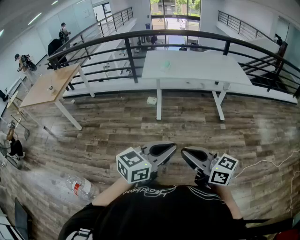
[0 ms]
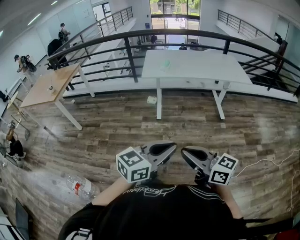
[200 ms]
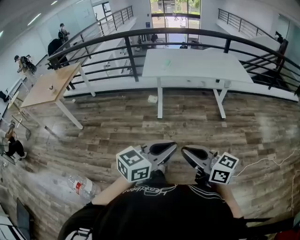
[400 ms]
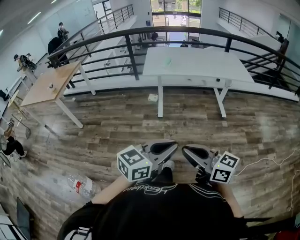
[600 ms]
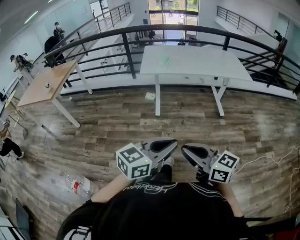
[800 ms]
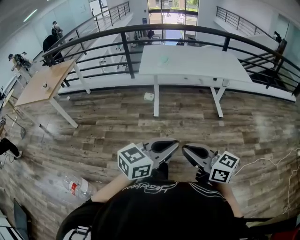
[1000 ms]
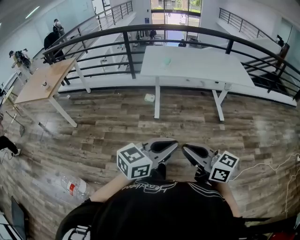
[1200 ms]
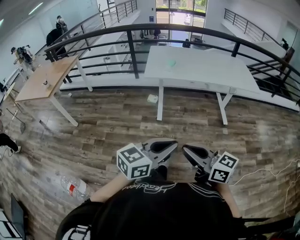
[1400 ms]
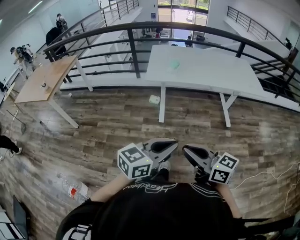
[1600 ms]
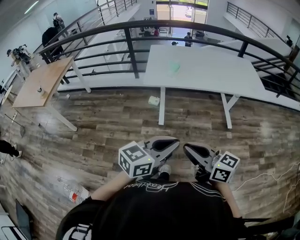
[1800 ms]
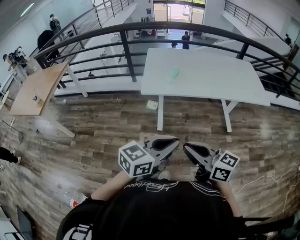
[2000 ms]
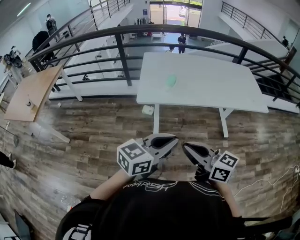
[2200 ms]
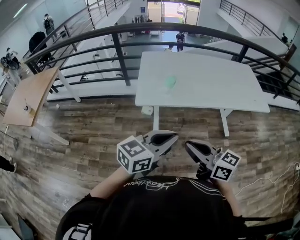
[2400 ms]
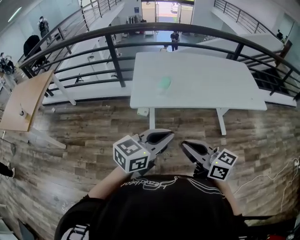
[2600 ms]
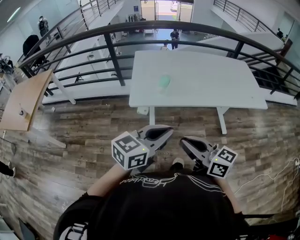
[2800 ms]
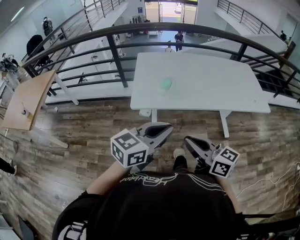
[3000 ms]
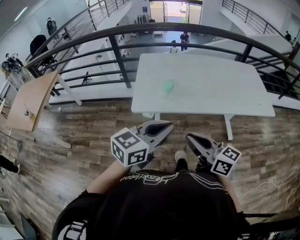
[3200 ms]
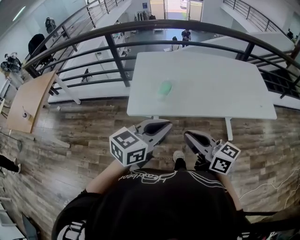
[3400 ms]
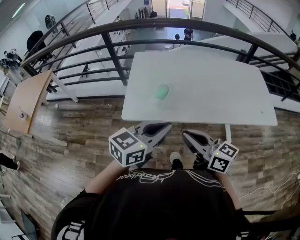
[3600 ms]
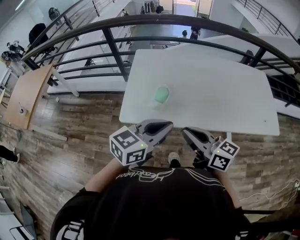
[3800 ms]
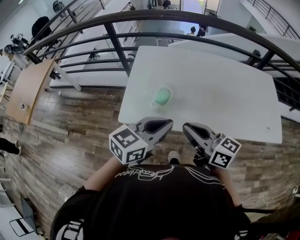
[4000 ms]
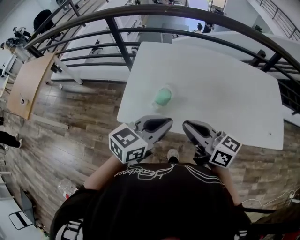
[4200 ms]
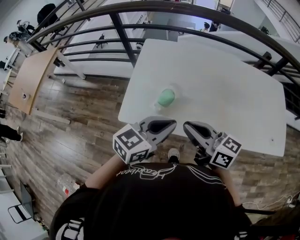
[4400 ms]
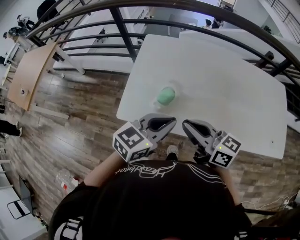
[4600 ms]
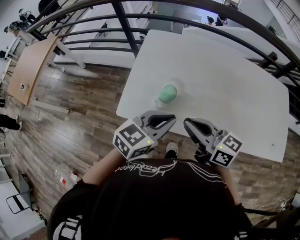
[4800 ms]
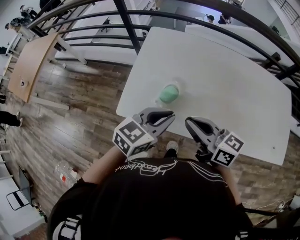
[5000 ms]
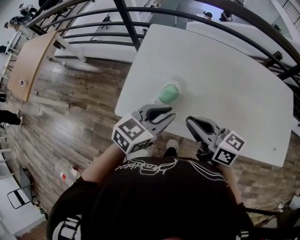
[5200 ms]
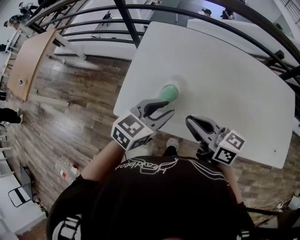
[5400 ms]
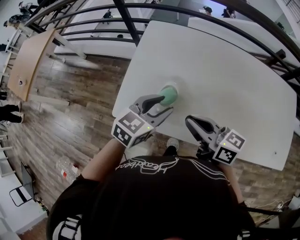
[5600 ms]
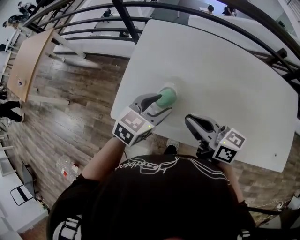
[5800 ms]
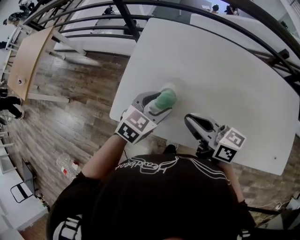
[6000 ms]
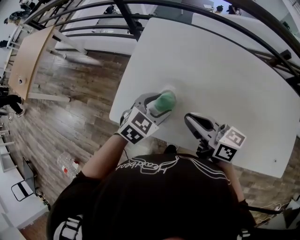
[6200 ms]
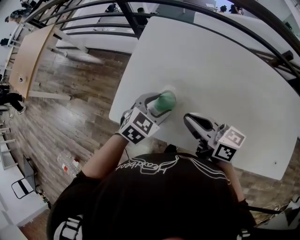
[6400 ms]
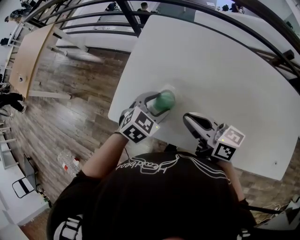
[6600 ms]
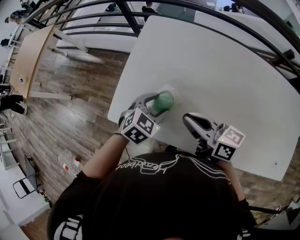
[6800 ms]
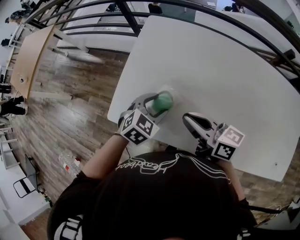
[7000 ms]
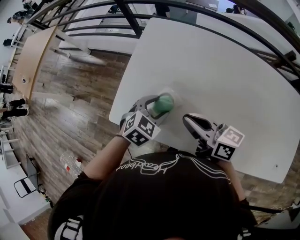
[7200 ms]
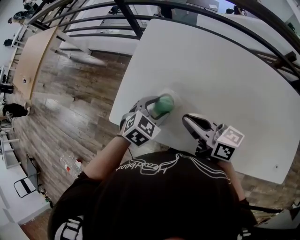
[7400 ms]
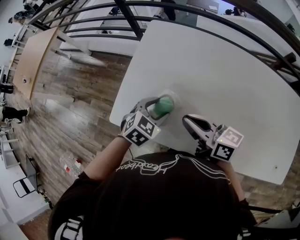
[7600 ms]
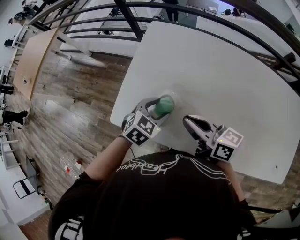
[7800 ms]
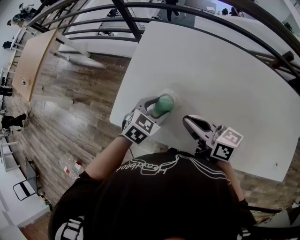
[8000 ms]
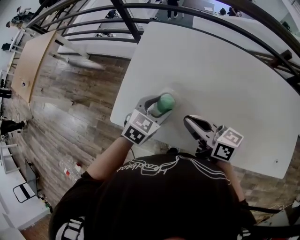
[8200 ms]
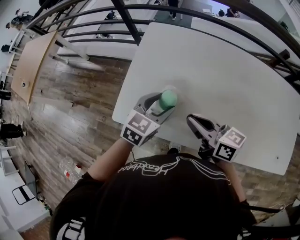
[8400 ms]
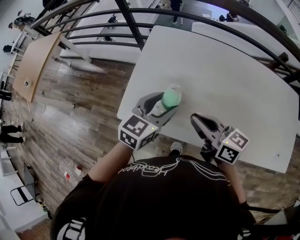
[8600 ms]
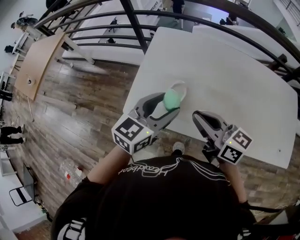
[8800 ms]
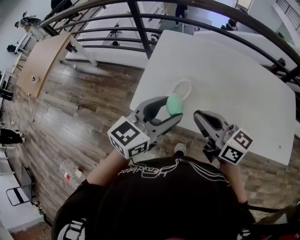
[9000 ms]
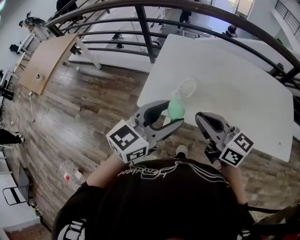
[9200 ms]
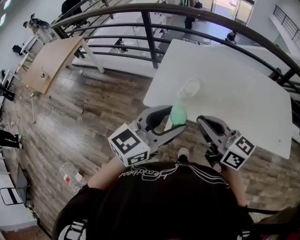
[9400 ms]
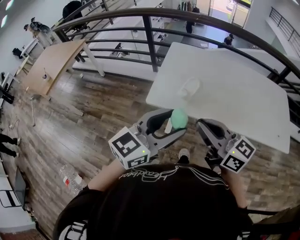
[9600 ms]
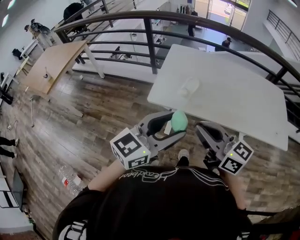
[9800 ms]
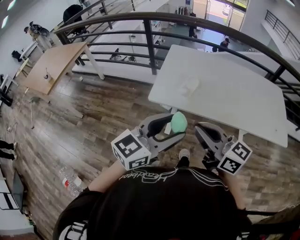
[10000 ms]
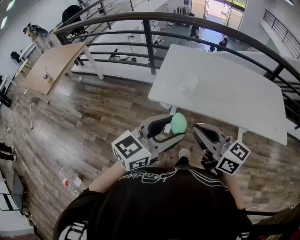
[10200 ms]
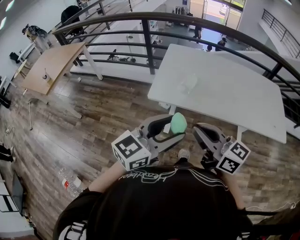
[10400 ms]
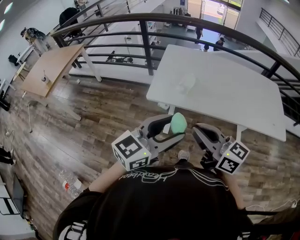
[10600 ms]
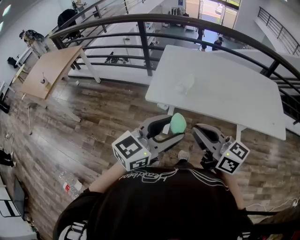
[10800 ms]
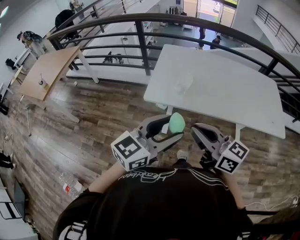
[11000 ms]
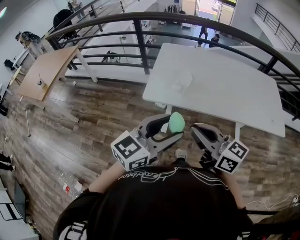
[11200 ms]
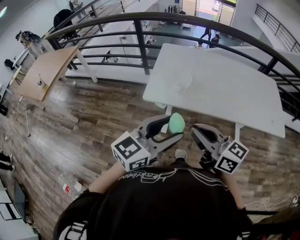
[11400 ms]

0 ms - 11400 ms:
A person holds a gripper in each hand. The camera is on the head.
0 ms - 1400 ms: Both grippers travel together forward, approximately 15 cm.
1400 ms - 2800 ms: Both grippers travel together forward, about 40 cm.
2800 ms - 4200 ms: The two grippers go approximately 30 cm forward.
4200 ms - 5600 ms: The grippers both shift forward and downward by some 15 cm. The left gripper opens.
5600 ms - 7200 ms: The right gripper shifts by roughly 5 cm. Meanwhile the left gripper moves downward, some 10 cm, and changes its angle by some 30 degrees.
7200 ms - 8600 ms: The left gripper travels upward by about 10 cm, and swivels some 30 degrees.
8600 ms - 10000 ms: The right gripper is displaced backward, to the left and upward by some 40 cm. Meanwhile the left gripper shifts roughly 40 cm backward and upward, and turns by some 30 degrees.
10000 ms - 11400 ms: The grippers stay close to where they were, moving slightly.

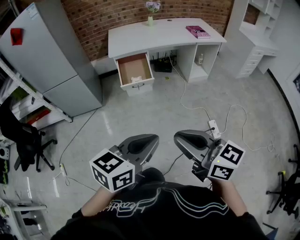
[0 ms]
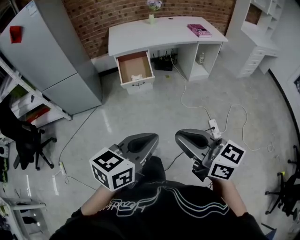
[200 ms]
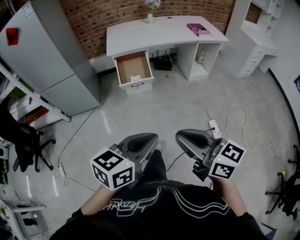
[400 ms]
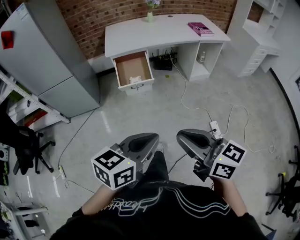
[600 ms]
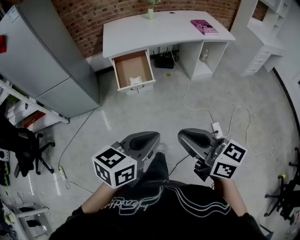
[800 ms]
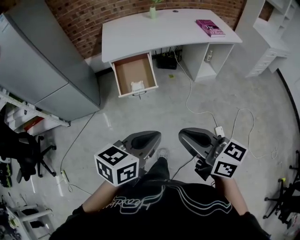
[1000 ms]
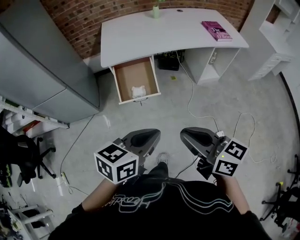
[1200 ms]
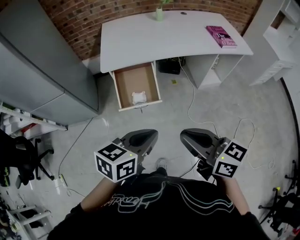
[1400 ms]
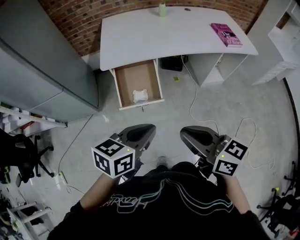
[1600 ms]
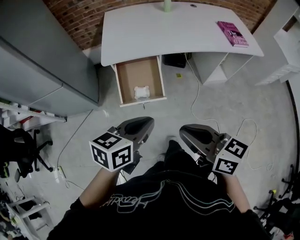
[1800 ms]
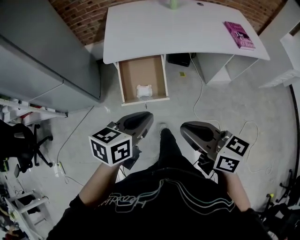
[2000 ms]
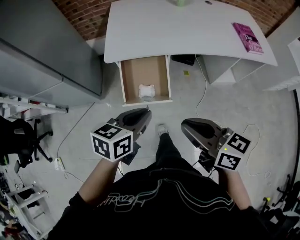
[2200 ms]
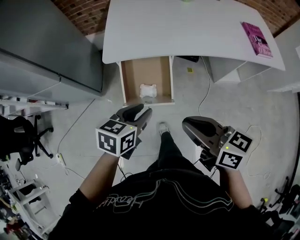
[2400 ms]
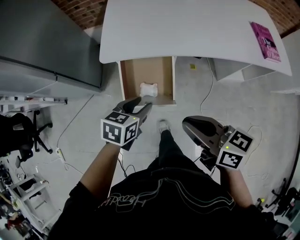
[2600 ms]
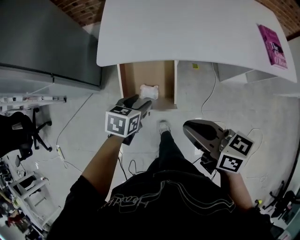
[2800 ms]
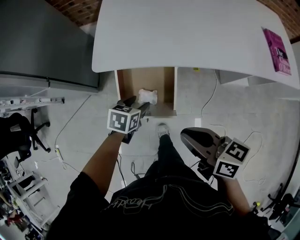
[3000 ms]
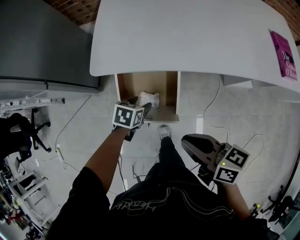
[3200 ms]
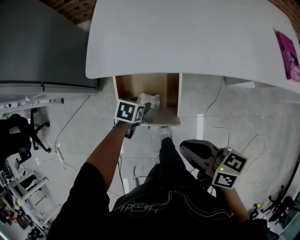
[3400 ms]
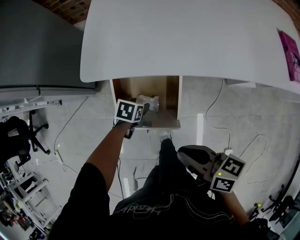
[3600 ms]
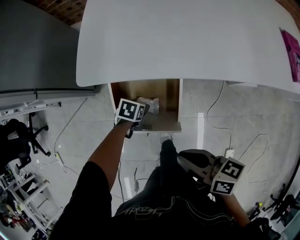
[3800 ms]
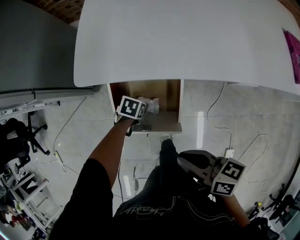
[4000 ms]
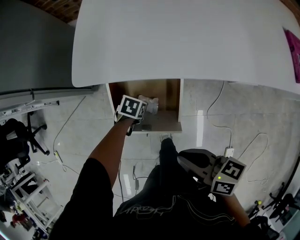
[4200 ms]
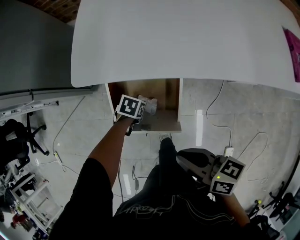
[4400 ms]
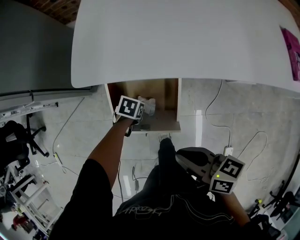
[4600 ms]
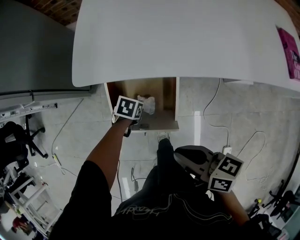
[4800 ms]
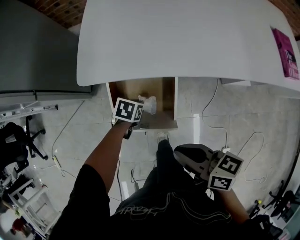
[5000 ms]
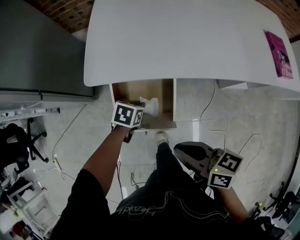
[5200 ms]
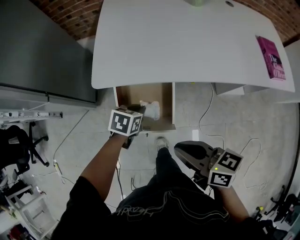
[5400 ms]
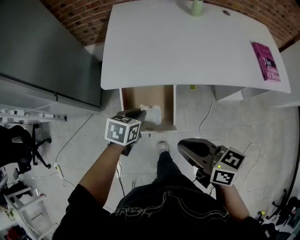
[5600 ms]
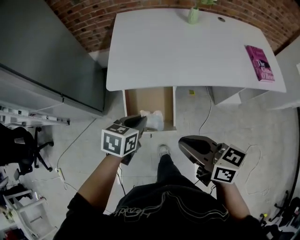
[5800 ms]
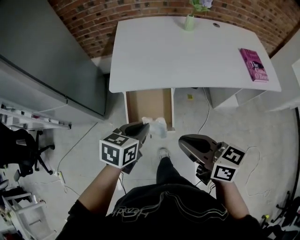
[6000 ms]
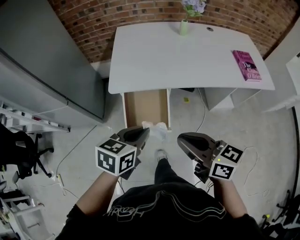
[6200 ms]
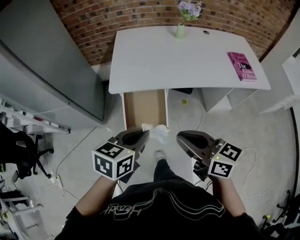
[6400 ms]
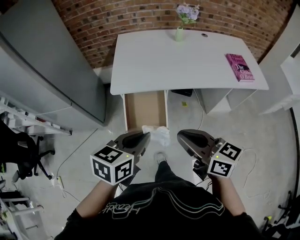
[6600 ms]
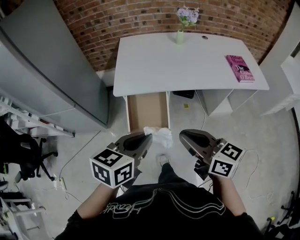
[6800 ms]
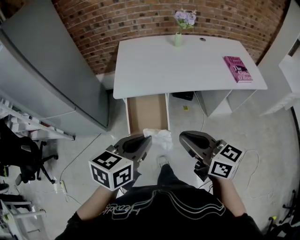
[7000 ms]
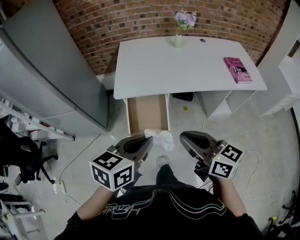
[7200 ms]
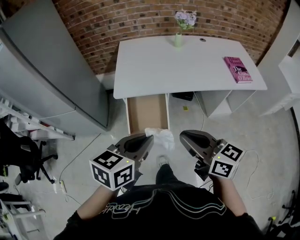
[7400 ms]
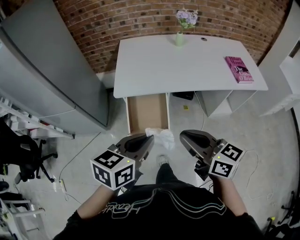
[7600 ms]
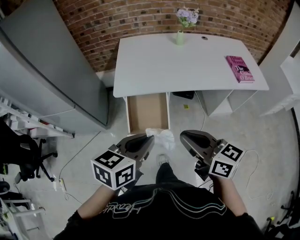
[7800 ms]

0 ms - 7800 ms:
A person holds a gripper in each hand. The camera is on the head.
0 ms - 1600 ms: Both grippers are carried forward, approximately 50 cm.
1600 ms - 3200 ms: The right gripper is displaced forward and downward by approximately 35 cm, and turns by roughly 20 degrees; the left gripper shifts approximately 50 cm downward and forward, angles its fingers downward, by approximately 40 degrees, and opens its fingers.
3200 ms - 4600 ms: The left gripper goes about 15 cm downward, and closes, while the right gripper travels downward by roughly 10 cm.
4600 ms - 6200 ms: The left gripper travels upward by roughly 50 cm, and tips its fingers upward by about 40 degrees. The right gripper heads upward, covering roughly 30 cm, and changes its angle by roughly 30 degrees.
6200 ms - 7800 ms: The left gripper heads upward and backward, covering some 15 cm; the right gripper shifts some 5 cm upward.

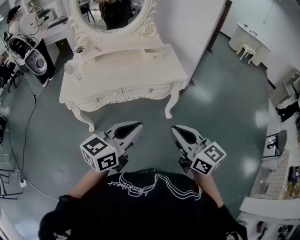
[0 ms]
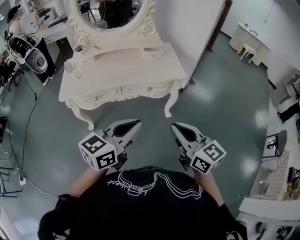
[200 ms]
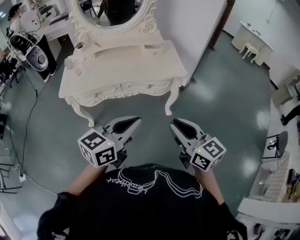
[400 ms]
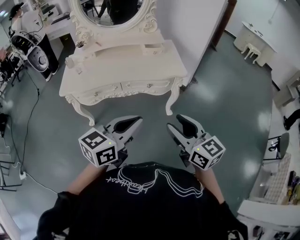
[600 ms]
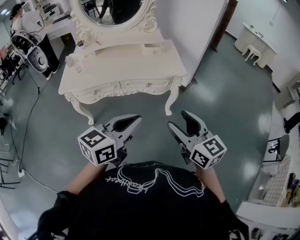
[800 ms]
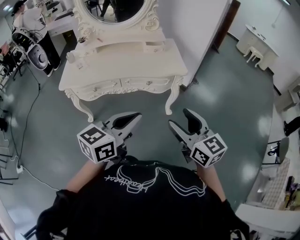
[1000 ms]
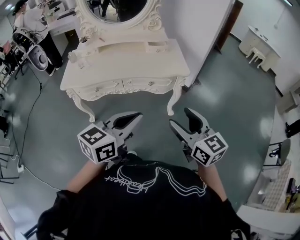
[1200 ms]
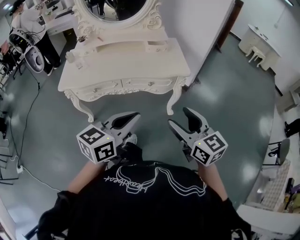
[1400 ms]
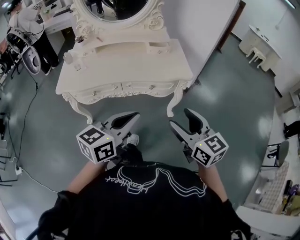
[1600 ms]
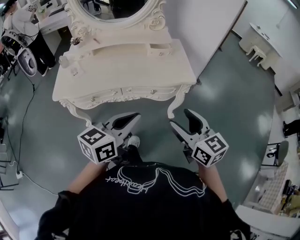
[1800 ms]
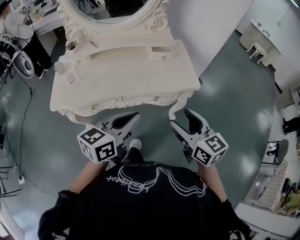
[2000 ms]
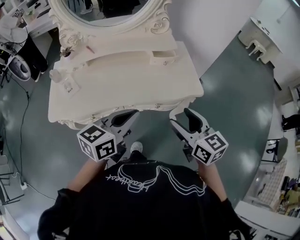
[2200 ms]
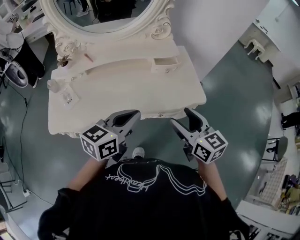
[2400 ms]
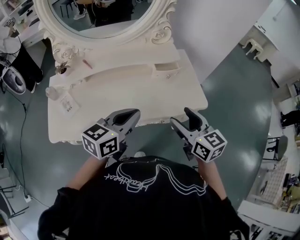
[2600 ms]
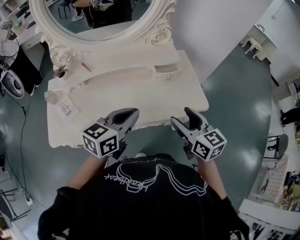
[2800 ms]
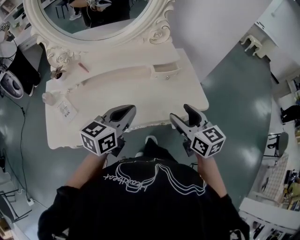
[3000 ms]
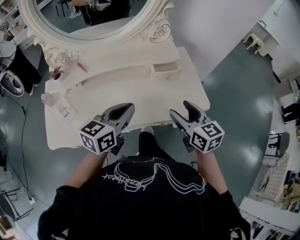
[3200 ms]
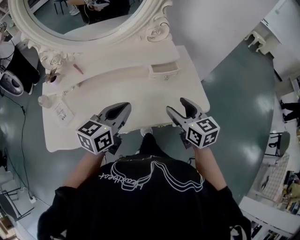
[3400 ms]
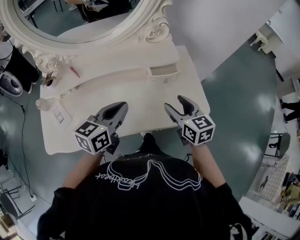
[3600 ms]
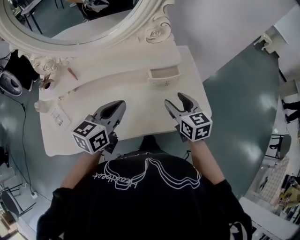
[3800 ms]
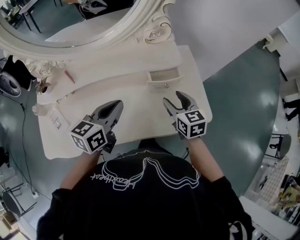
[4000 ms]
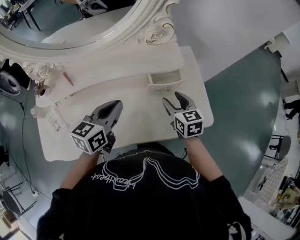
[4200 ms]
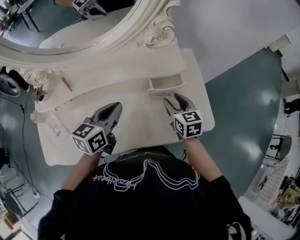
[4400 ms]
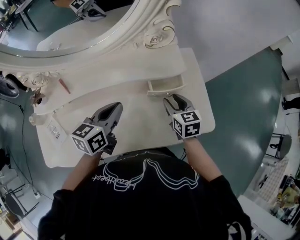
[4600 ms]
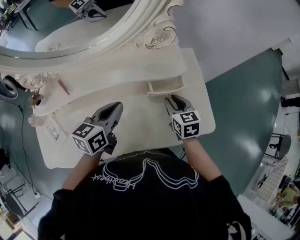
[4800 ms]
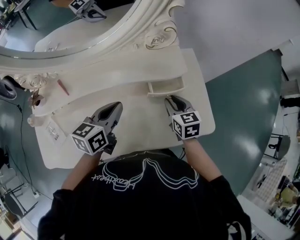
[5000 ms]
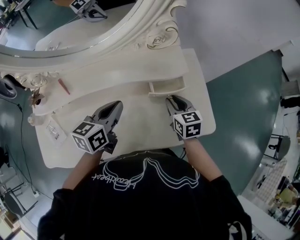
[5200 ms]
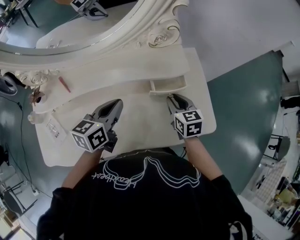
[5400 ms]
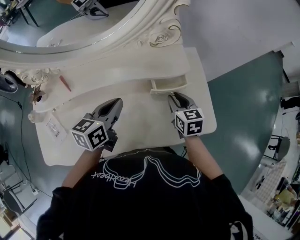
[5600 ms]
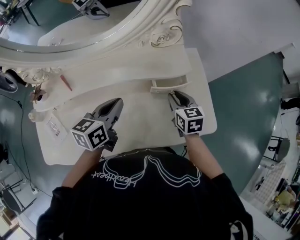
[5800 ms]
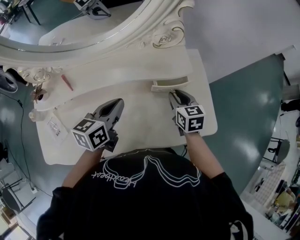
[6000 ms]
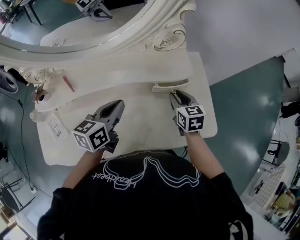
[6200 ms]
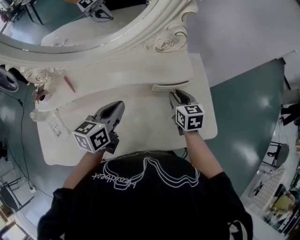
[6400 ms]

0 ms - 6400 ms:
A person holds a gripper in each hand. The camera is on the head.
0 ms - 1600 ms: The two grippers go approximately 5 cm forward. The right gripper opens up.
1600 ms - 3200 ms: The grippers both shift forward by some 35 cm.
3200 ms - 4800 ms: Both grippers move forward and downward, approximately 20 cm. The right gripper closes up.
4800 ms - 6400 ms: The grippers make only small movements.
